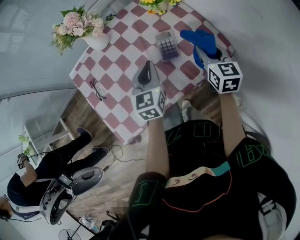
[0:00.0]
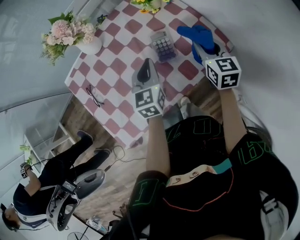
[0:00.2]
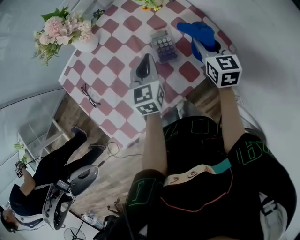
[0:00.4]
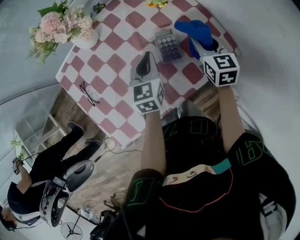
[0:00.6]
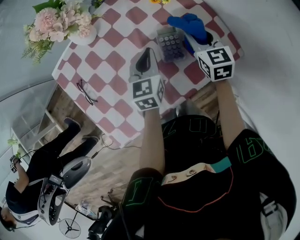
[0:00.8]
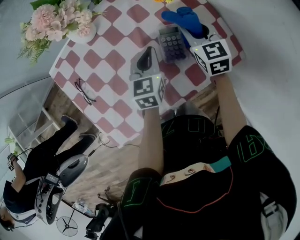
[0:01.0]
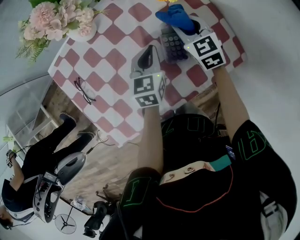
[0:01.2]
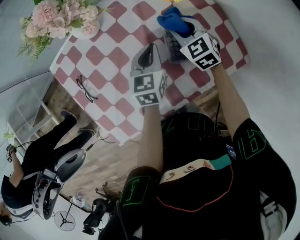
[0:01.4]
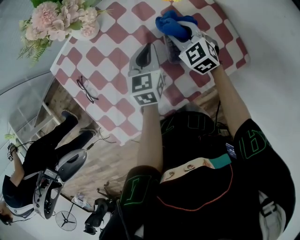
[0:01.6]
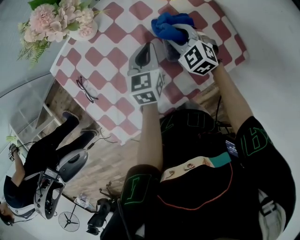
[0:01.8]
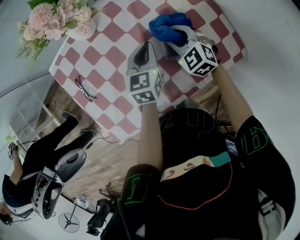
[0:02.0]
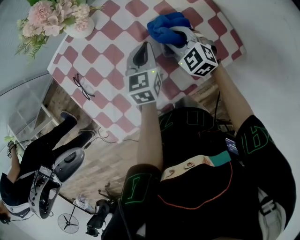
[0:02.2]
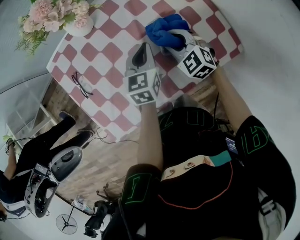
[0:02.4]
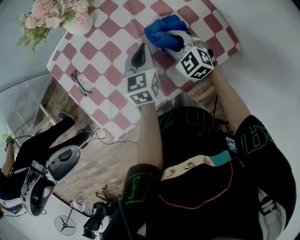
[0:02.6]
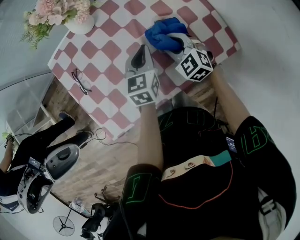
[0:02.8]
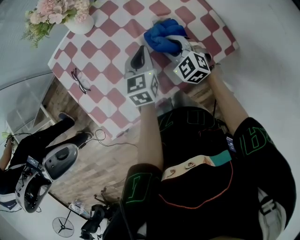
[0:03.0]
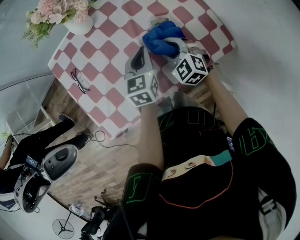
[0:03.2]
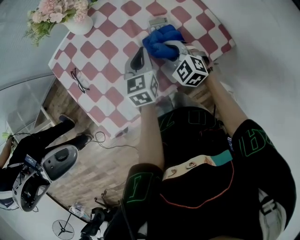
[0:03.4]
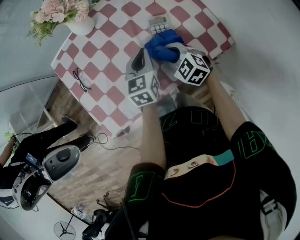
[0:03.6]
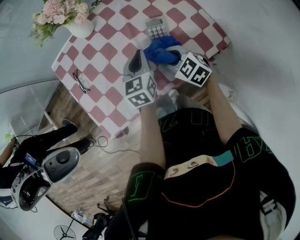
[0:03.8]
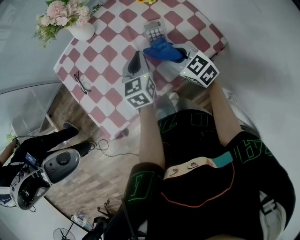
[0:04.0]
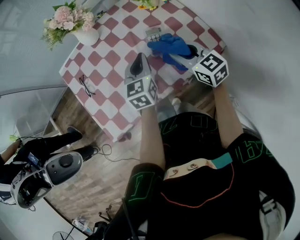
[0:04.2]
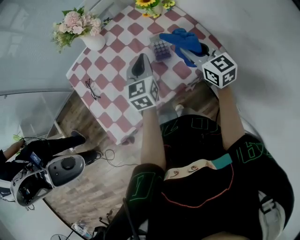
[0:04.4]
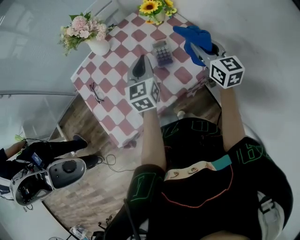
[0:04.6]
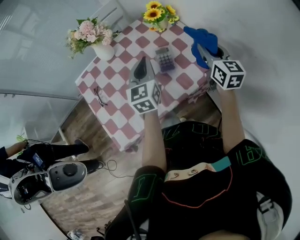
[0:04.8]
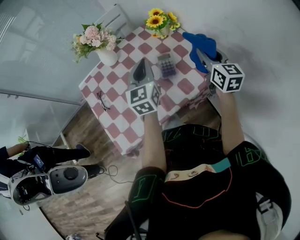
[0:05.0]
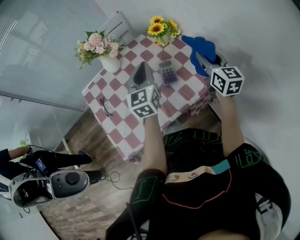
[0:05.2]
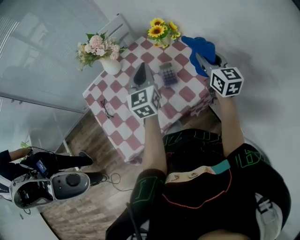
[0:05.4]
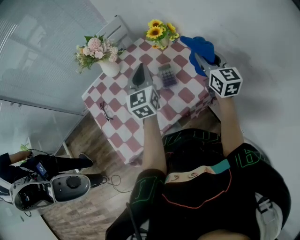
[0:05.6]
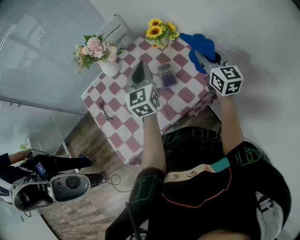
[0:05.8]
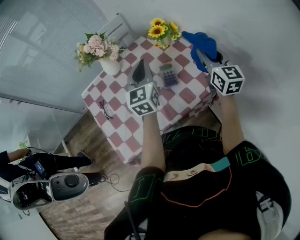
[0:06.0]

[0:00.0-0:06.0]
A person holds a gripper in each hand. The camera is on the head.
0:00.0 to 0:01.6: The right gripper heads to the left, forward and downward, covering some 20 cm, and changes its angle by some 50 degrees. Meanwhile the left gripper heads forward and downward, covering some 15 cm.
0:01.6 to 0:03.0: The right gripper goes some 10 cm backward. The left gripper shifts about 5 cm backward.
0:03.0 to 0:04.4: The left gripper goes some 10 cm upward. Meanwhile the right gripper travels upward, to the right and backward by roughly 20 cm, and turns by some 40 degrees.
0:04.4 to 0:06.0: The left gripper travels upward by roughly 10 cm. Meanwhile the right gripper moves upward and to the right, approximately 10 cm, and swivels approximately 20 degrees.

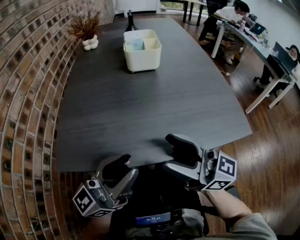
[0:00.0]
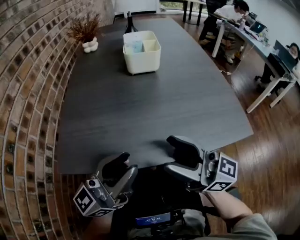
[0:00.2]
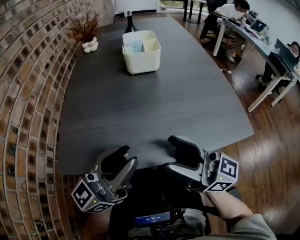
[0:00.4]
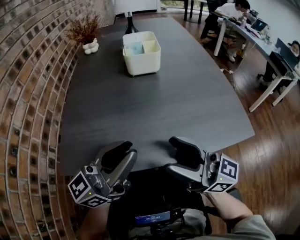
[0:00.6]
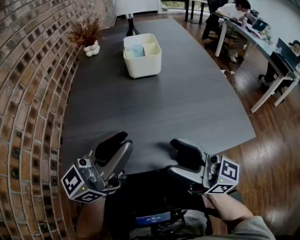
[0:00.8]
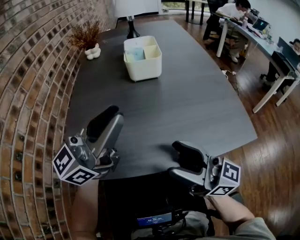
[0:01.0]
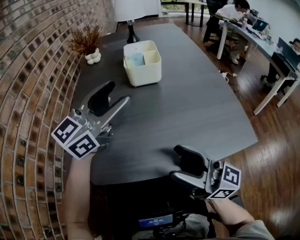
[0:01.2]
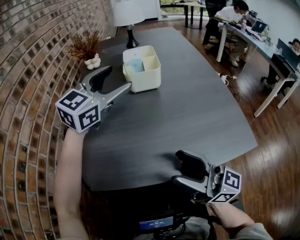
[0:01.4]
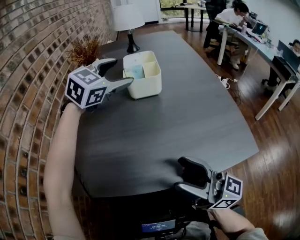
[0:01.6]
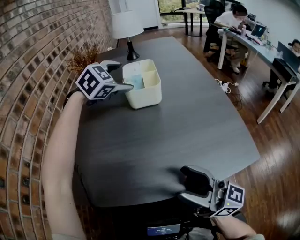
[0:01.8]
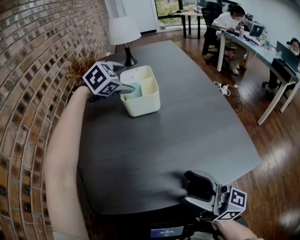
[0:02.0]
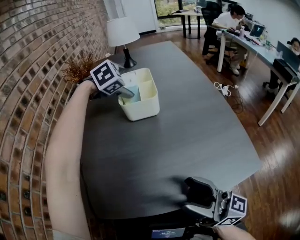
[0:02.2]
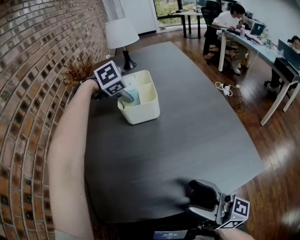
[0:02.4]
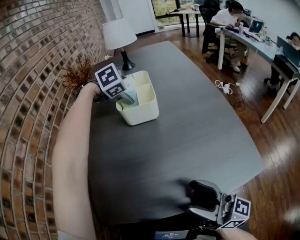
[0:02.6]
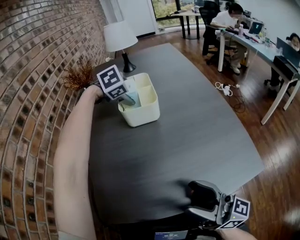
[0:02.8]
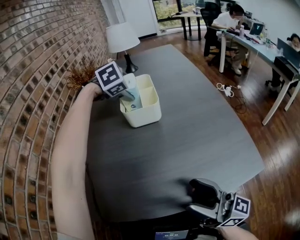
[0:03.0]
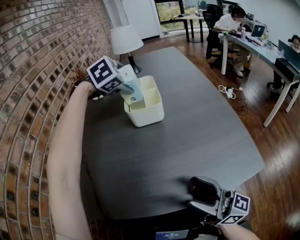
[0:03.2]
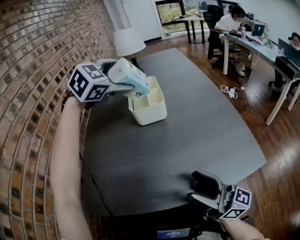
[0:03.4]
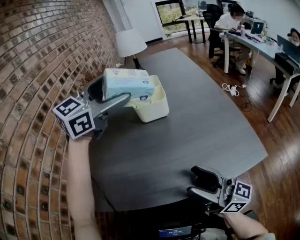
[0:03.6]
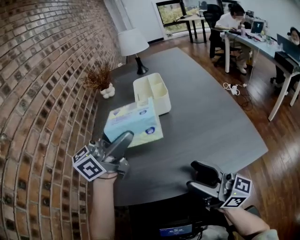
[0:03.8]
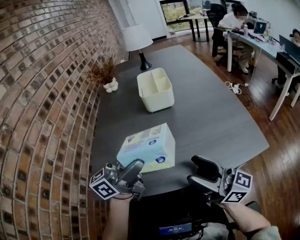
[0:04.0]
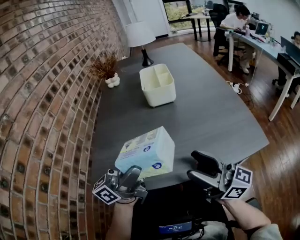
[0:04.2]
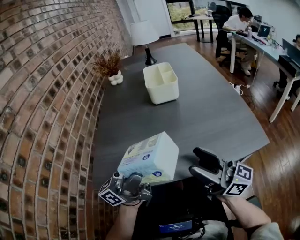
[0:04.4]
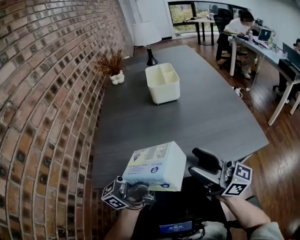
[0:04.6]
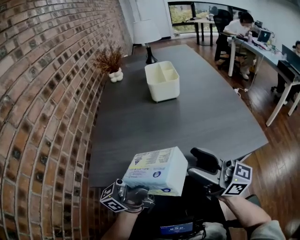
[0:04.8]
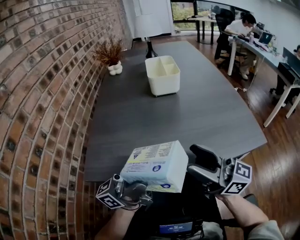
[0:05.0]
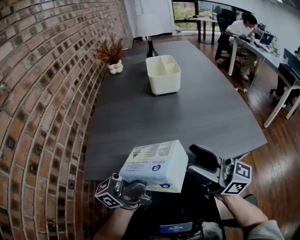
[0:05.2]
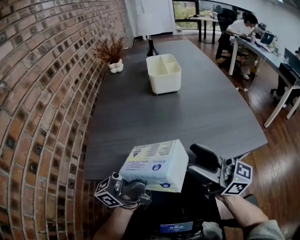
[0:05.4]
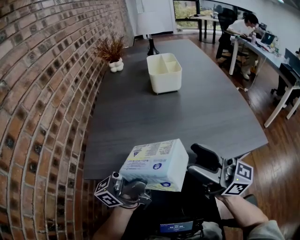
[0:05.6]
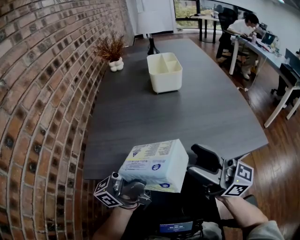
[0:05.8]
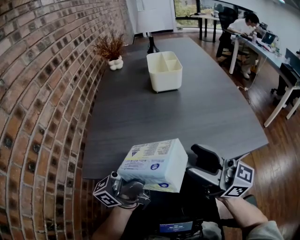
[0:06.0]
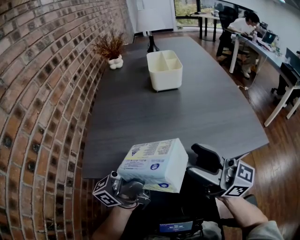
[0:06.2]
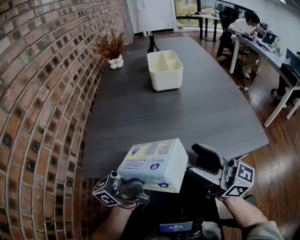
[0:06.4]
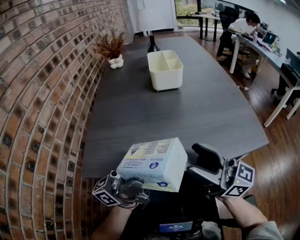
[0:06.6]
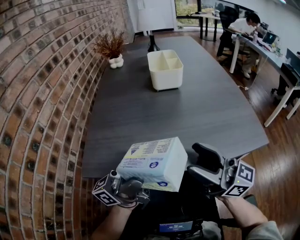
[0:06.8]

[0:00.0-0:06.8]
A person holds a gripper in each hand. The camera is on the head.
0:00.0 to 0:01.4: The left gripper travels forward by some 30 cm, points its fingers about 30 degrees further downward, and opens.
0:01.4 to 0:02.8: The left gripper shifts about 25 cm forward and downward, and tilts its fingers roughly 60 degrees downward.
0:02.8 to 0:04.0: The left gripper moves backward, approximately 40 cm, and tips its fingers upward by approximately 90 degrees.
0:04.0 to 0:05.4: The left gripper travels backward by approximately 10 cm.
0:05.4 to 0:06.8: Both grippers stay about where they are.

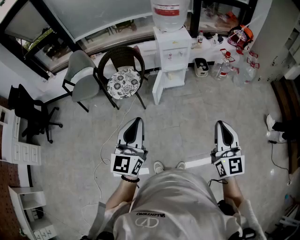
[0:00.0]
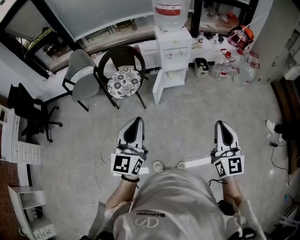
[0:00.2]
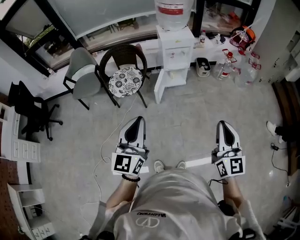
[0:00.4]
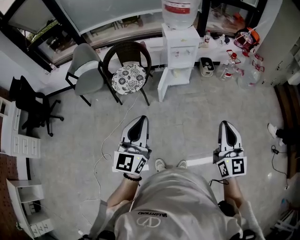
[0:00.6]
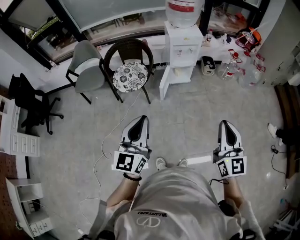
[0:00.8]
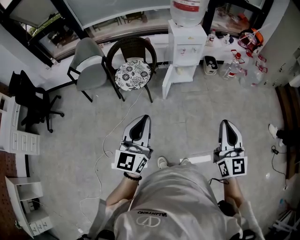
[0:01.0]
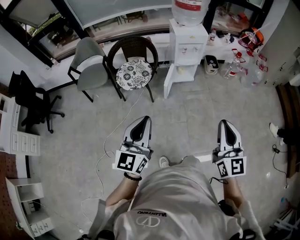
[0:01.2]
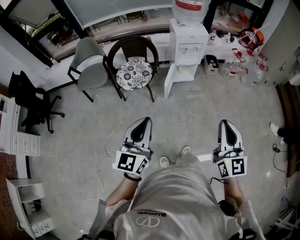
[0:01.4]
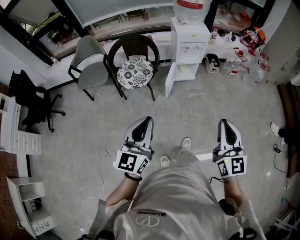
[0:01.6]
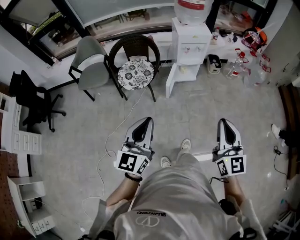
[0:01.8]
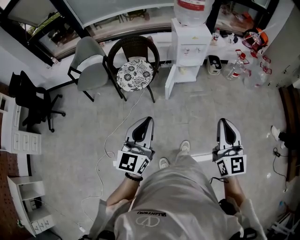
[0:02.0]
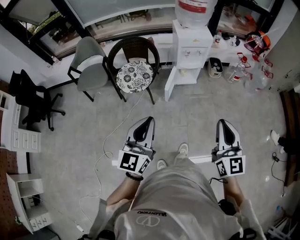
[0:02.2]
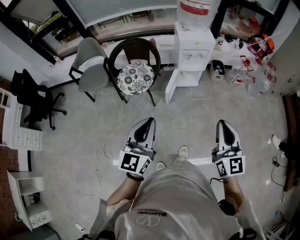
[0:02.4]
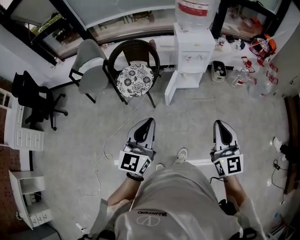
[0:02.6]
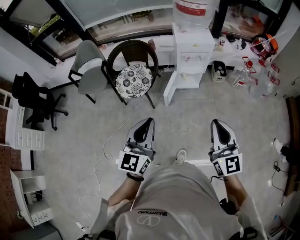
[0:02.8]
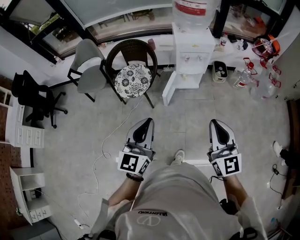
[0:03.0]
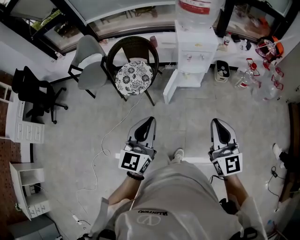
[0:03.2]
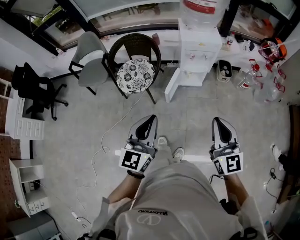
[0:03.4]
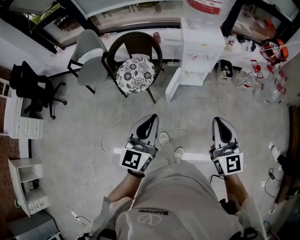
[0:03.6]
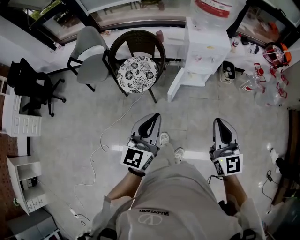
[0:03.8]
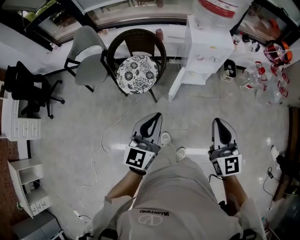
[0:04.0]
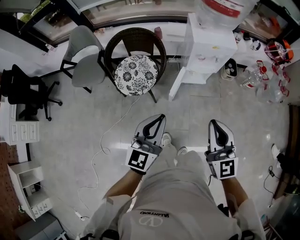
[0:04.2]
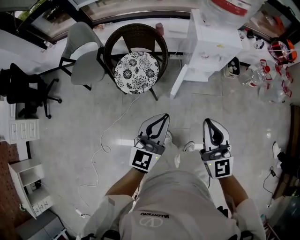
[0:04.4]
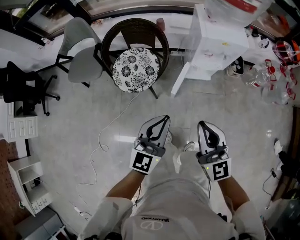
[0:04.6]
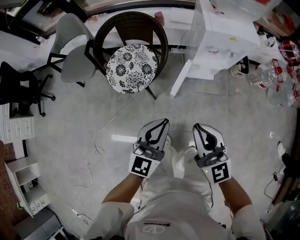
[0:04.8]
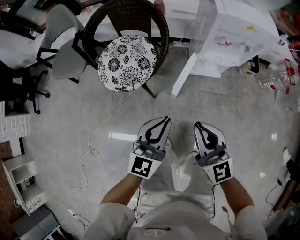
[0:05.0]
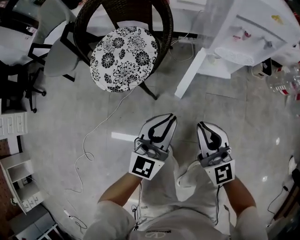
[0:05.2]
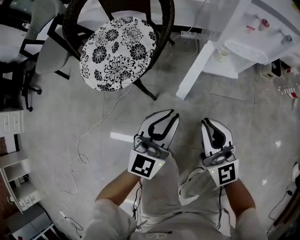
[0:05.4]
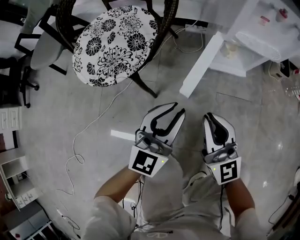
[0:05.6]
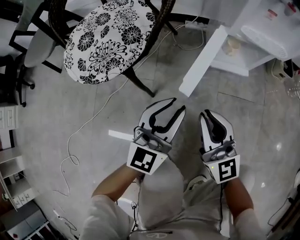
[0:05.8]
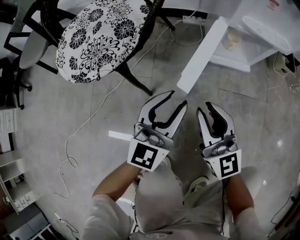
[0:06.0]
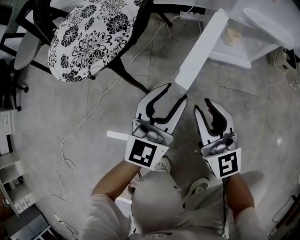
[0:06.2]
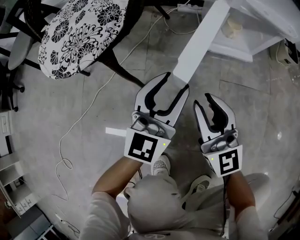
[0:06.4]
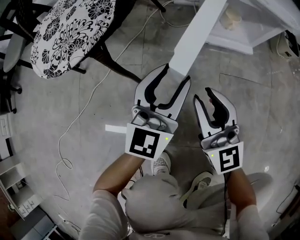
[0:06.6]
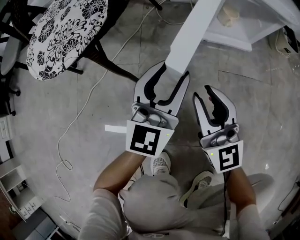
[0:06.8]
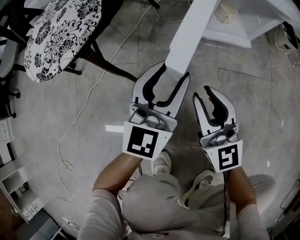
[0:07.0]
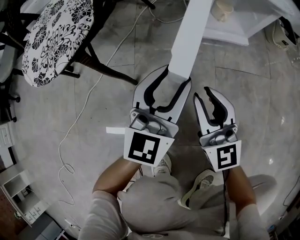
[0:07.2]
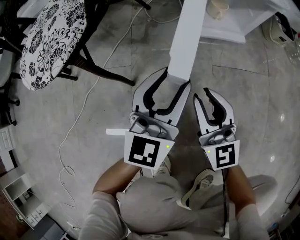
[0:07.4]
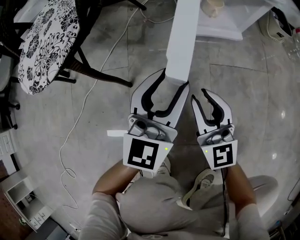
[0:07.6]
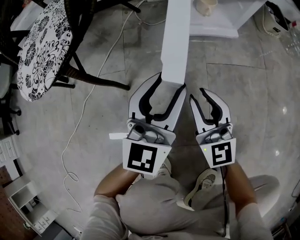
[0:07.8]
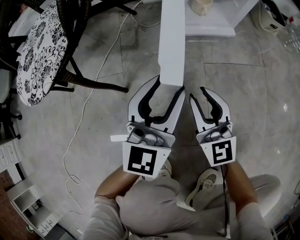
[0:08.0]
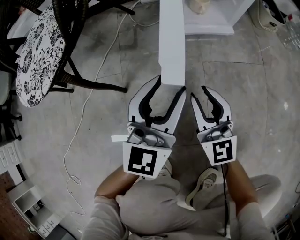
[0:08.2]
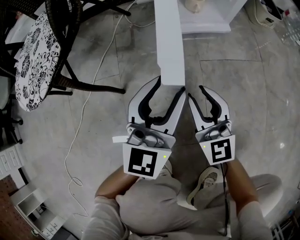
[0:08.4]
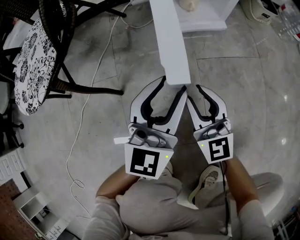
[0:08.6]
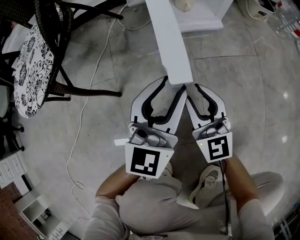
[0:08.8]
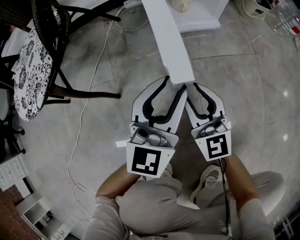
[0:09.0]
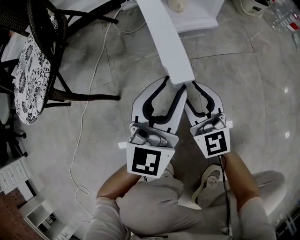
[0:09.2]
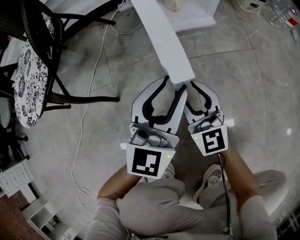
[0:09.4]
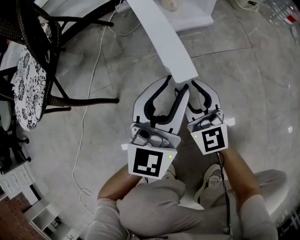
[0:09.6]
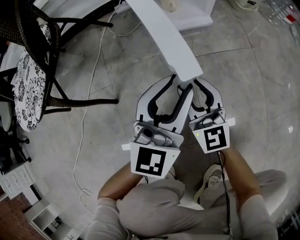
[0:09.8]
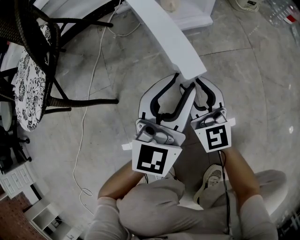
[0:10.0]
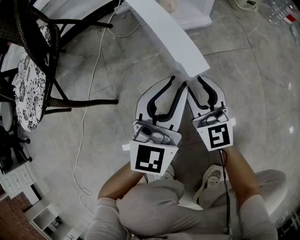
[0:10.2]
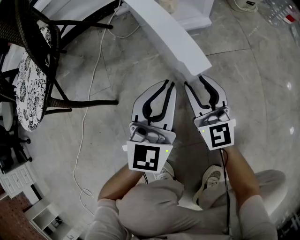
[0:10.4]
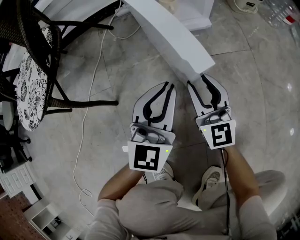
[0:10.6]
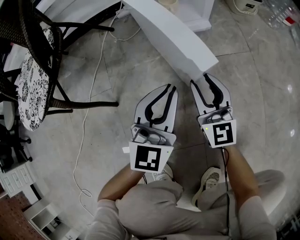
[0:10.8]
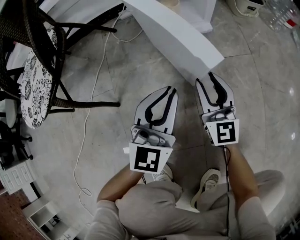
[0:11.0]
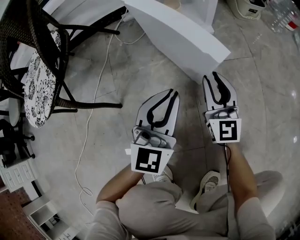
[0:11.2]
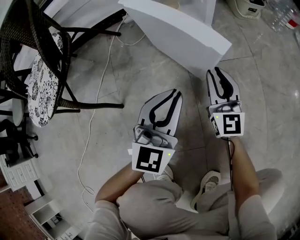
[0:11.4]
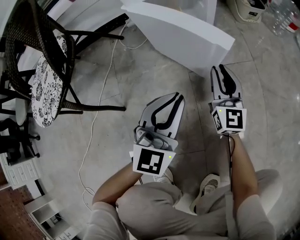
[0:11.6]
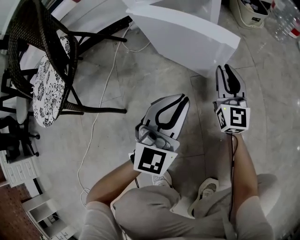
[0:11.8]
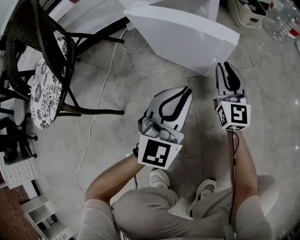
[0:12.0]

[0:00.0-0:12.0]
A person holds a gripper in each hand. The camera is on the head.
0:00.0 to 0:01.6: Both grippers move to the left, some 10 cm.
0:01.6 to 0:03.0: The left gripper moves forward and to the right, roughly 20 cm. Meanwhile the right gripper heads forward, covering approximately 20 cm.
0:03.0 to 0:04.4: The right gripper travels forward and to the left by approximately 20 cm; the left gripper goes roughly 20 cm forward and downward.
0:04.4 to 0:06.0: Both grippers move downward, some 60 cm. The left gripper opens up.
0:06.0 to 0:07.6: The left gripper heads downward and to the right, covering some 10 cm, while the right gripper is displaced downward by about 10 cm.
0:07.6 to 0:09.0: The right gripper changes place by about 5 cm, while the left gripper travels to the right by some 5 cm.
0:09.0 to 0:10.4: The left gripper closes; the right gripper changes place by roughly 5 cm.
0:10.4 to 0:12.0: The left gripper is displaced to the right by about 5 cm. The right gripper moves forward and to the right, approximately 15 cm.
